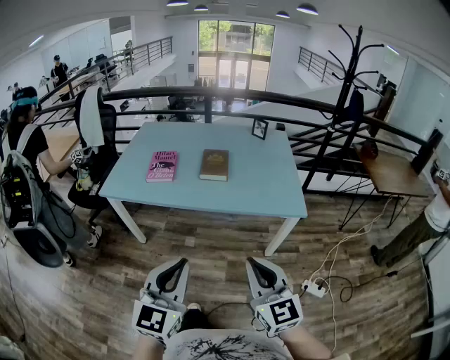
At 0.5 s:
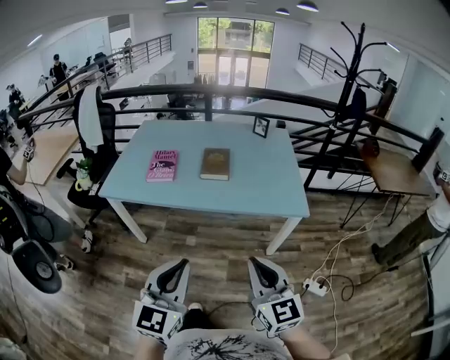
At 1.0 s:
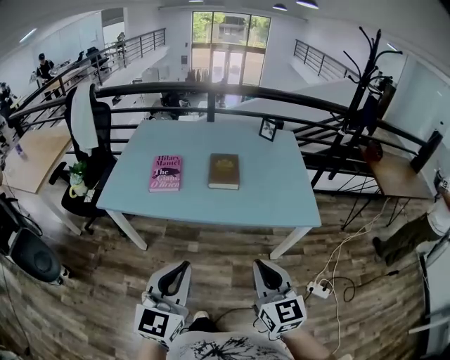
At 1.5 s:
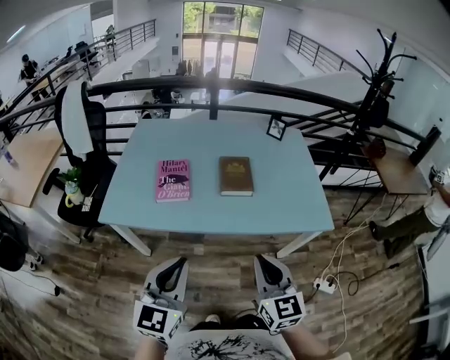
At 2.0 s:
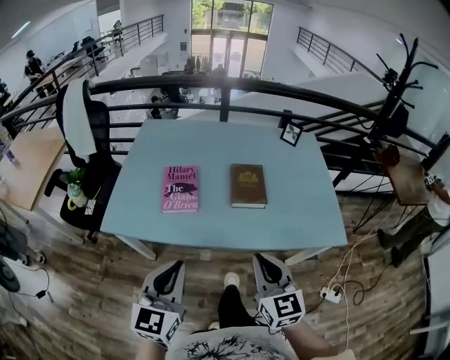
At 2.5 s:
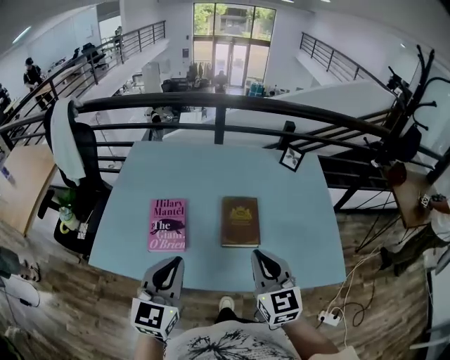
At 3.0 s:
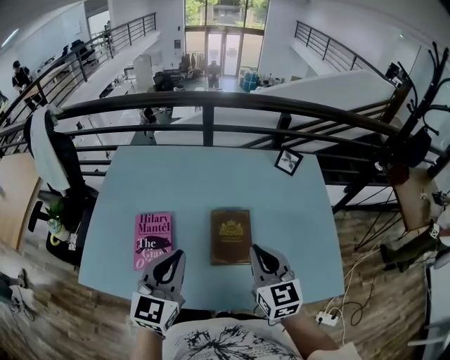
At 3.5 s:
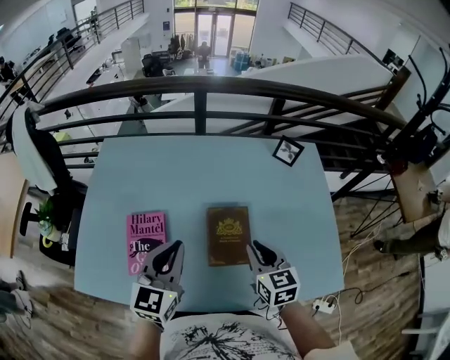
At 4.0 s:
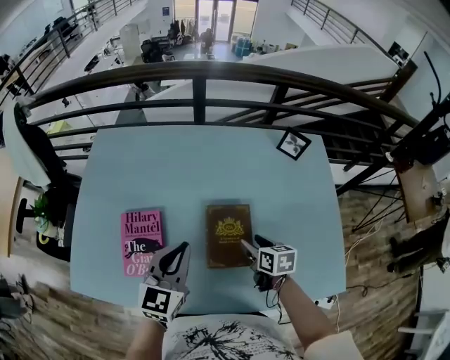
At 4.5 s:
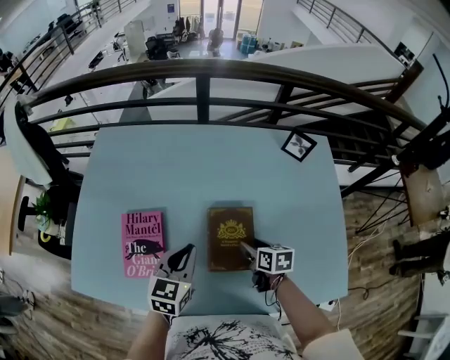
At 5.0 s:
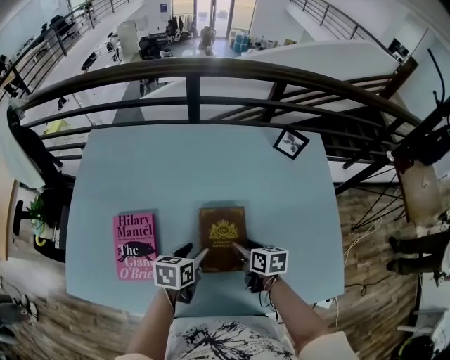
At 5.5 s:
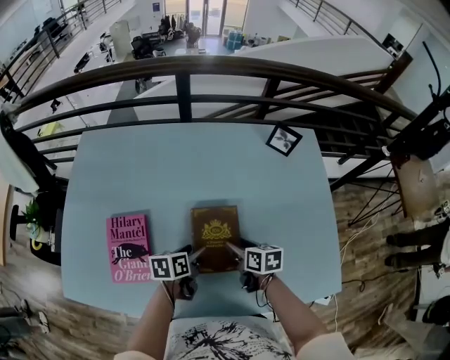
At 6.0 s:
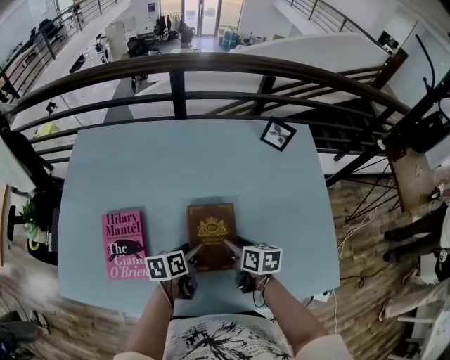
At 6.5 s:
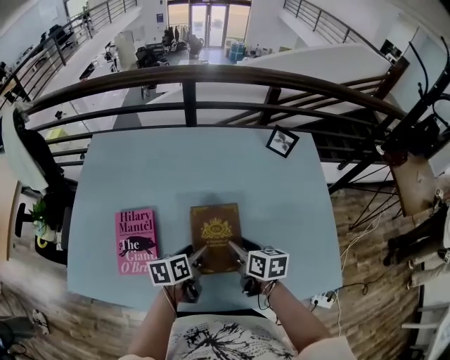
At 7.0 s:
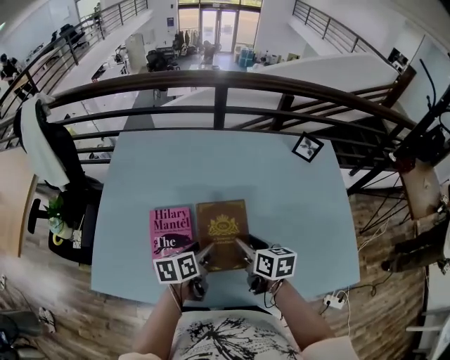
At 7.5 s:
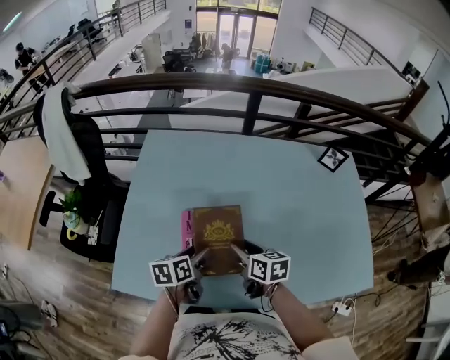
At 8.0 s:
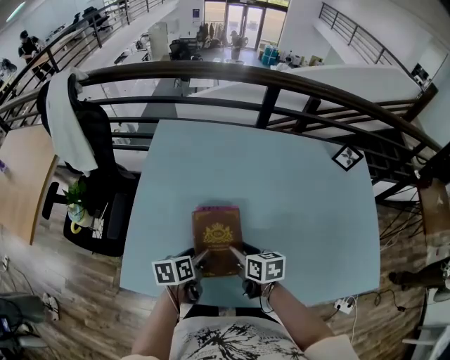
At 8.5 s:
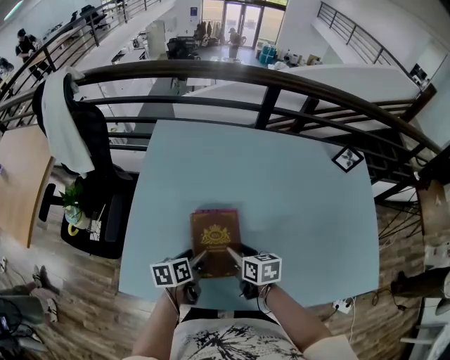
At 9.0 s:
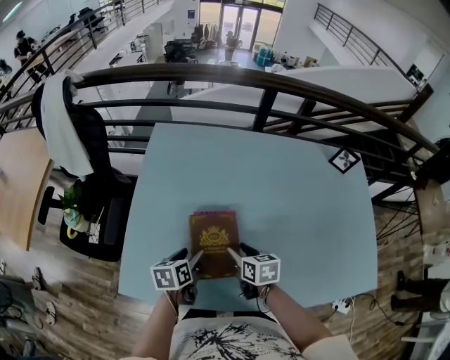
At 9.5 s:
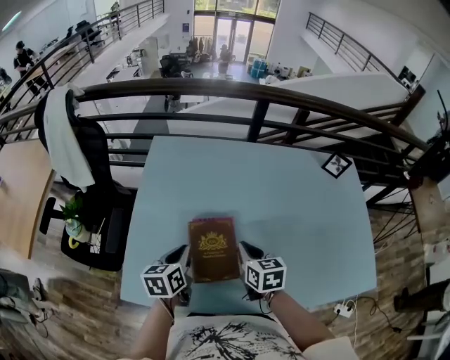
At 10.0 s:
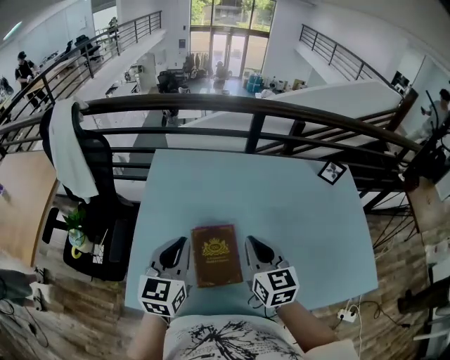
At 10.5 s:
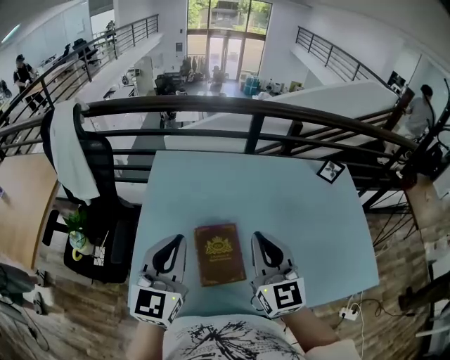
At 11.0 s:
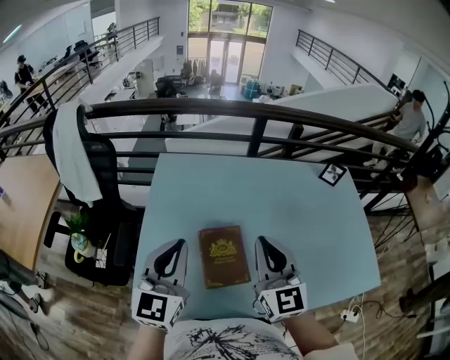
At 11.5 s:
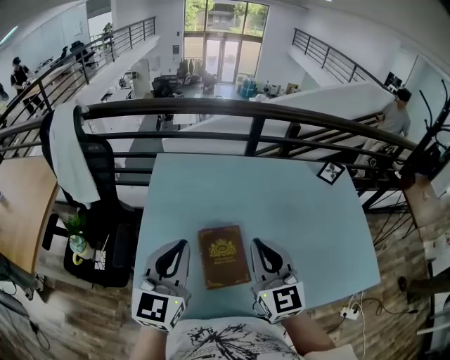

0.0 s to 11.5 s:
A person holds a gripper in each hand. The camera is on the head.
0.0 to 2.0 s: Both grippers move forward and to the left, roughly 35 cm.
2.0 to 4.0 s: The two grippers travel together, forward, some 40 cm. The right gripper moves downward, roughly 25 cm, points its fingers approximately 30 degrees further downward, and opens up.
4.0 to 6.0 s: The left gripper moves downward, roughly 20 cm, rolls counterclockwise, seen from behind, by some 50 degrees, and opens its fingers.
6.0 to 7.5 s: Both grippers travel together to the left, approximately 25 cm.
7.5 to 9.5 s: The right gripper goes downward and returns, about 5 cm each way, and closes up; the left gripper goes about 10 cm to the left, and closes up.
9.5 to 11.5 s: The two grippers go approximately 20 cm upward. The left gripper angles its fingers upward, by approximately 30 degrees. Meanwhile the right gripper tilts its fingers approximately 30 degrees upward.

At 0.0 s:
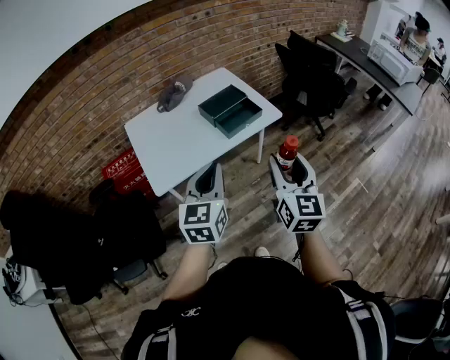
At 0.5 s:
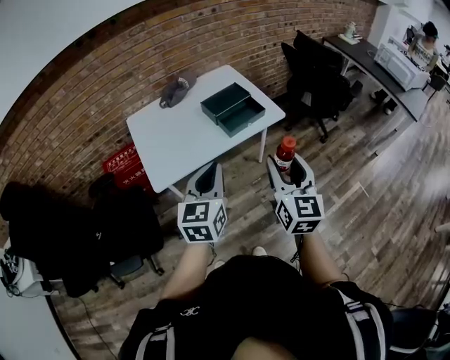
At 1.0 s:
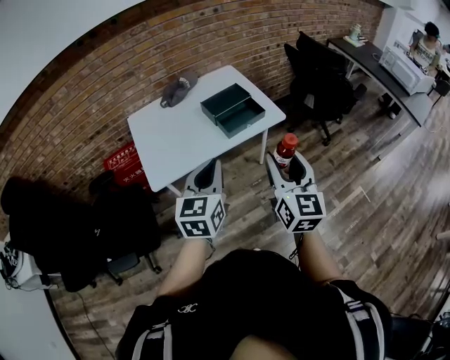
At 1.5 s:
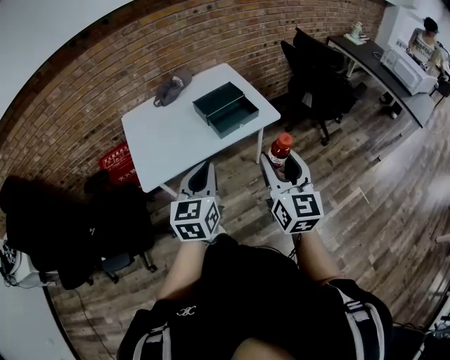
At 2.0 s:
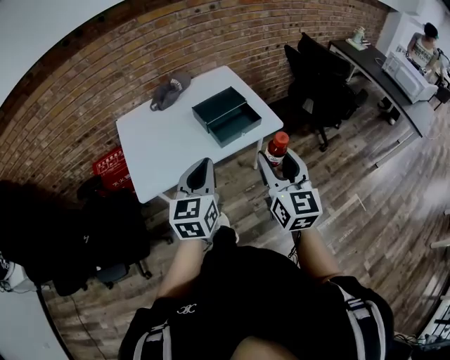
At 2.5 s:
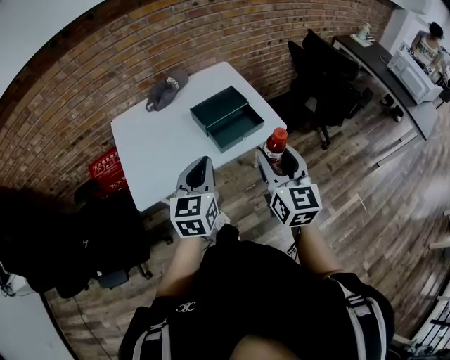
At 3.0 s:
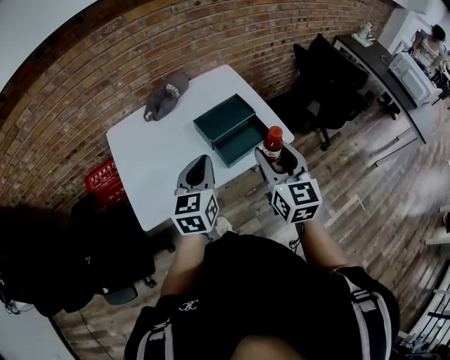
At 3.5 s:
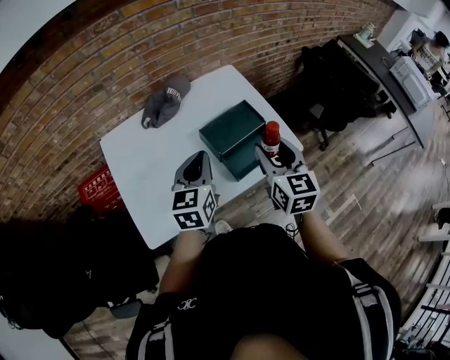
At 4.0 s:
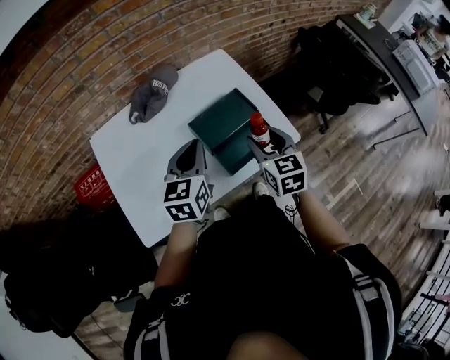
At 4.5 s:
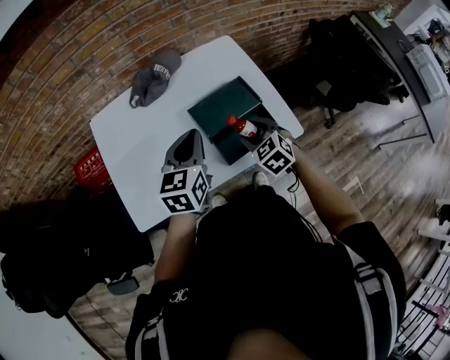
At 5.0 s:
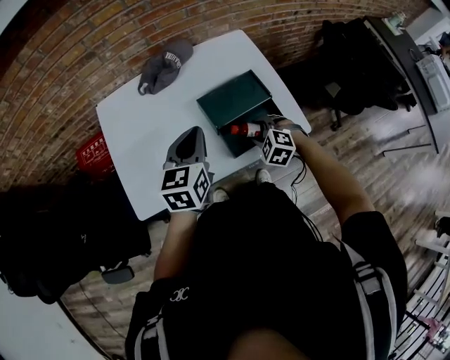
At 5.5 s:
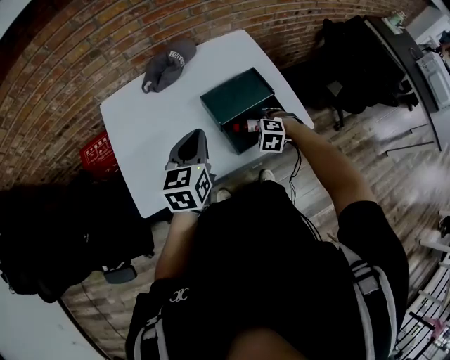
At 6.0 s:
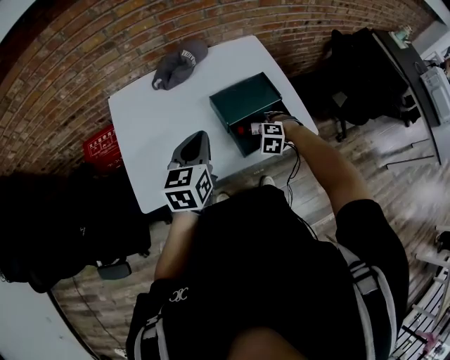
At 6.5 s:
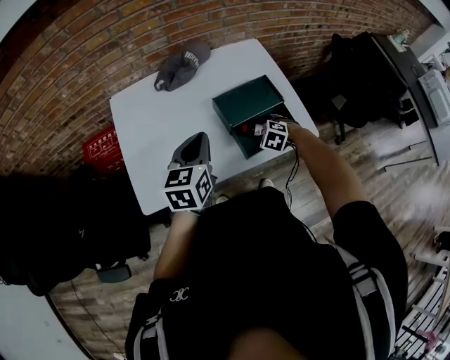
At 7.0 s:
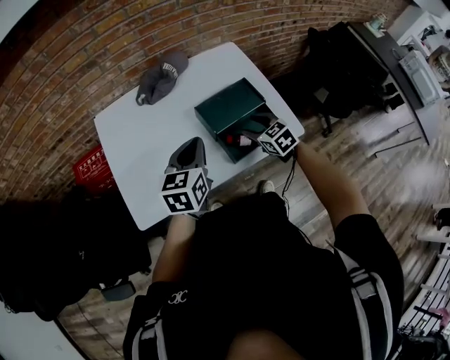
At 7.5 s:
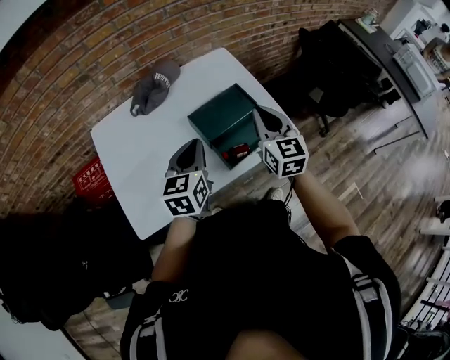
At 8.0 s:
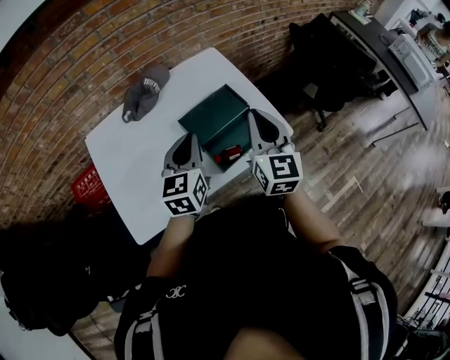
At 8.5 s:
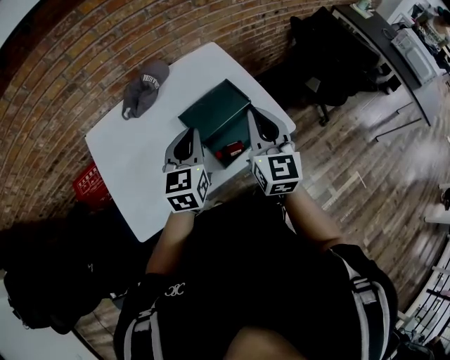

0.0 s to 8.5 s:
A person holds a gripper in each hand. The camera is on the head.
0.0 to 2.0 s: The grippers both shift forward by approximately 10 cm.
2.0 to 4.0 s: The left gripper shifts approximately 30 cm forward, while the right gripper moves forward and downward, roughly 35 cm, and changes its angle by about 30 degrees.
4.0 to 6.5 s: The right gripper shifts about 25 cm downward, and points its fingers some 40 degrees further downward. The left gripper shifts approximately 10 cm to the left and backward.
6.5 to 8.5 s: The left gripper moves to the right and forward, about 10 cm, while the right gripper is displaced upward by some 30 cm, points its fingers about 70 degrees further upward, and closes its fingers.

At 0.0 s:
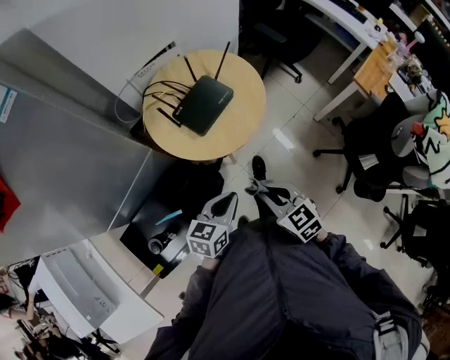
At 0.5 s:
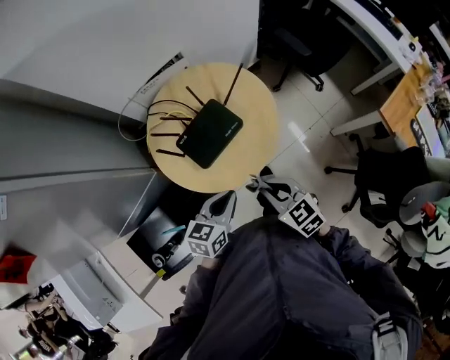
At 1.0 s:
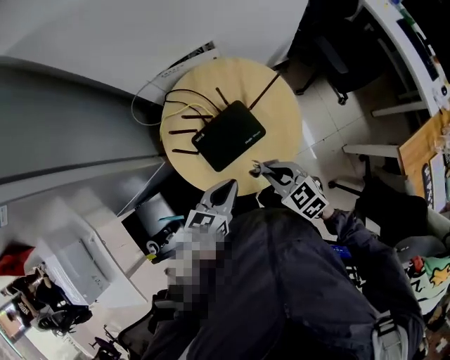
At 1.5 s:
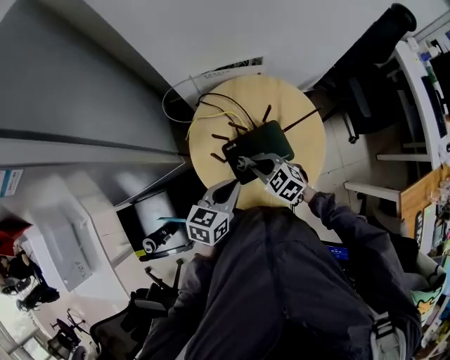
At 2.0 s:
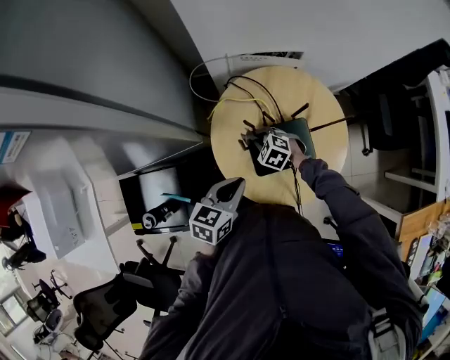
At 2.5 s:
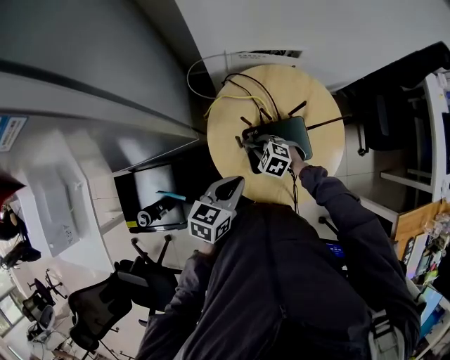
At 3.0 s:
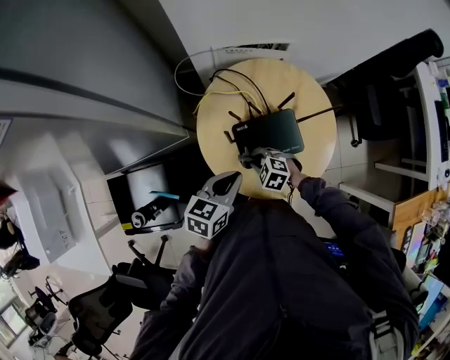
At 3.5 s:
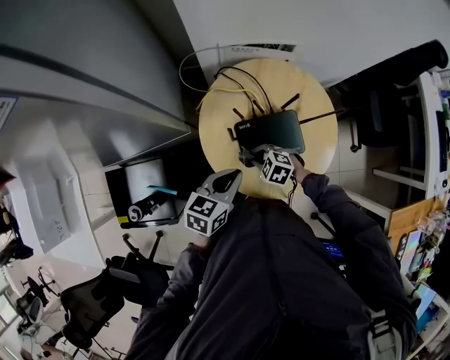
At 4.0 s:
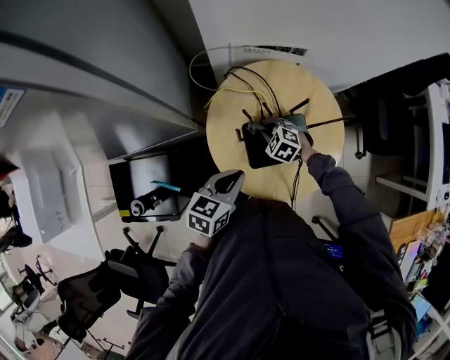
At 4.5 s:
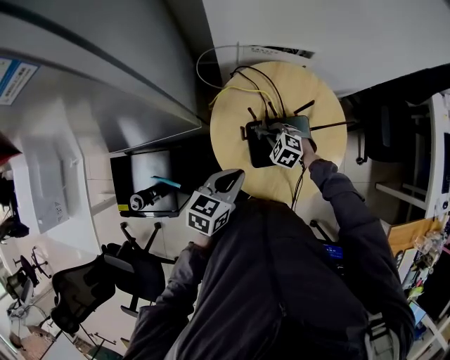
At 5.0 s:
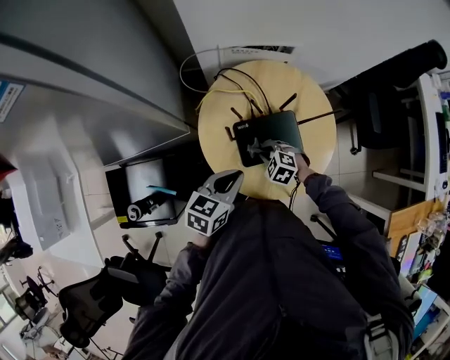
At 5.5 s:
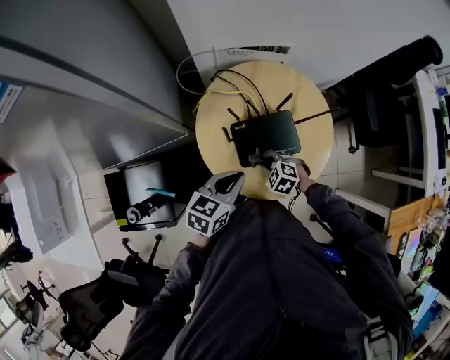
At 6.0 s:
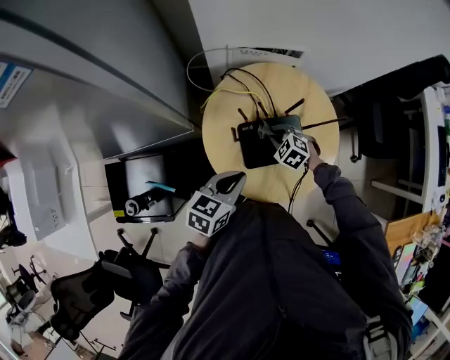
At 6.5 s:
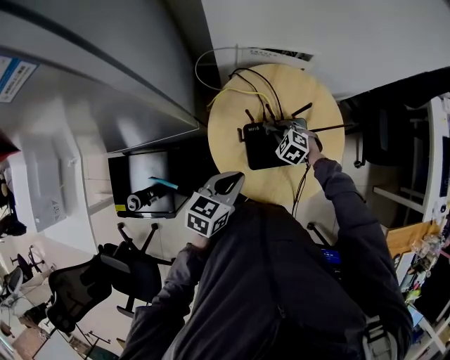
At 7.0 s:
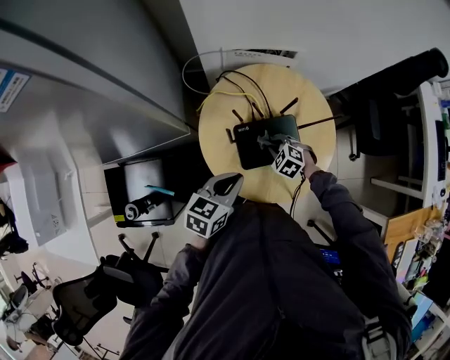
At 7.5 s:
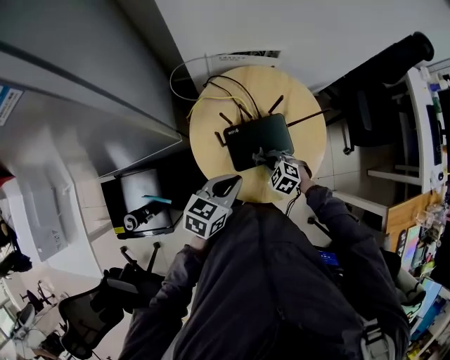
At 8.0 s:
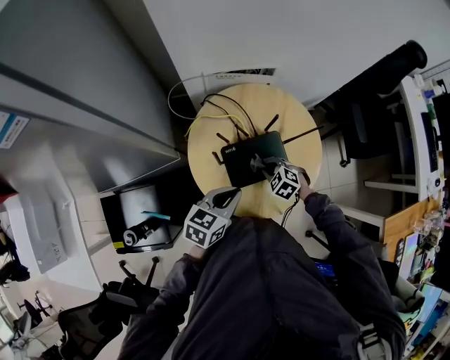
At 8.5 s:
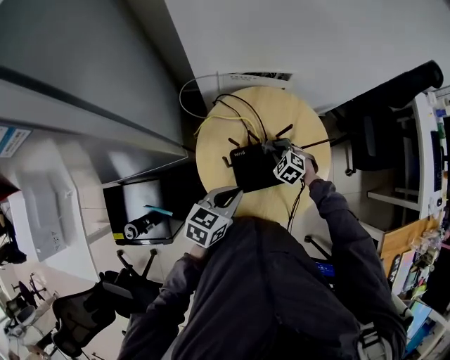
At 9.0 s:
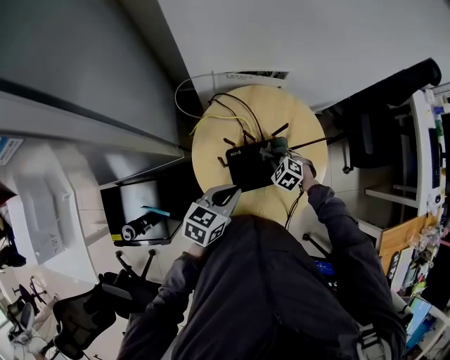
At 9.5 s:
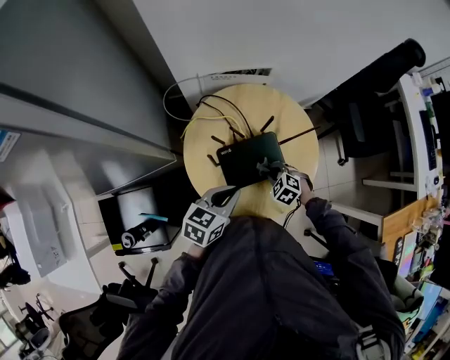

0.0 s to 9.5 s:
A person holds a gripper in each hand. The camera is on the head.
0.0 to 2.0 s: The left gripper ends up some 25 cm from where it was, and changes its angle by approximately 30 degrees. The right gripper ends up approximately 50 cm from where it was, and changes its angle by roughly 60 degrees.
4.0 to 5.5 s: The right gripper moves backward, roughly 15 cm.
5.5 to 7.5 s: The right gripper moves roughly 15 cm forward and comes back.
7.5 to 9.5 s: The right gripper moves roughly 15 cm forward and comes back.
